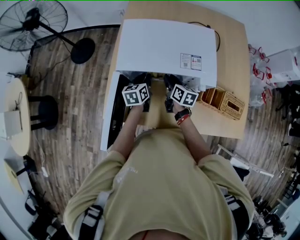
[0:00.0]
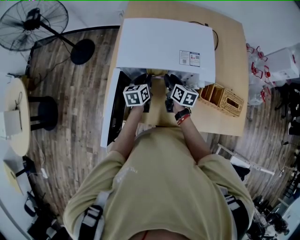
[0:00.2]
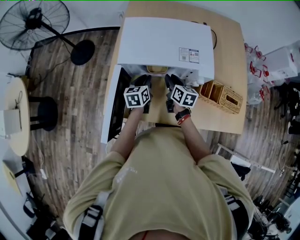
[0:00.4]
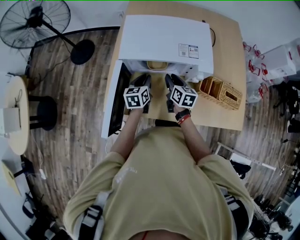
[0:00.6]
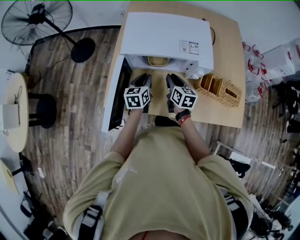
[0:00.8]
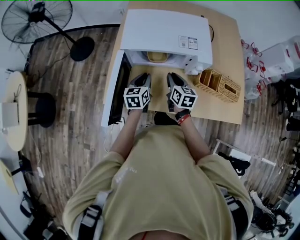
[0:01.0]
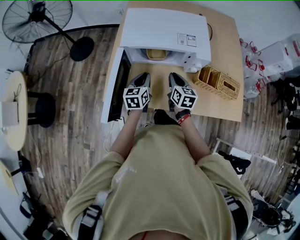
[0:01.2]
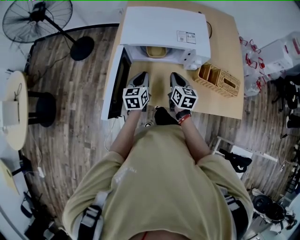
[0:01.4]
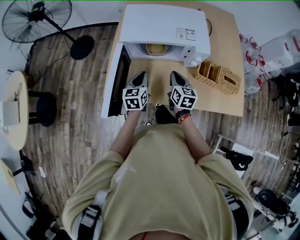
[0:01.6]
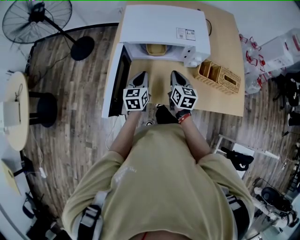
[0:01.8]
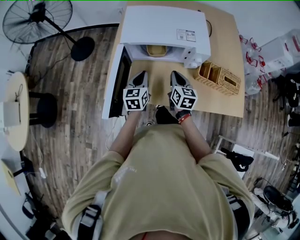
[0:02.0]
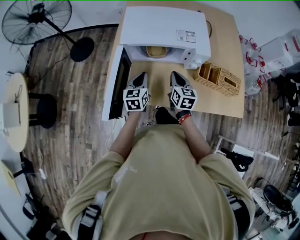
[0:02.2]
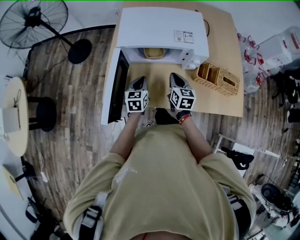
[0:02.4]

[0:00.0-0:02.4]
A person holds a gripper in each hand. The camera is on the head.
0:00.0 to 0:01.2: The right gripper shifts about 15 cm backward and upward. The left gripper shifts some 15 cm backward.
0:01.2 to 0:02.4: The grippers make only small movements.

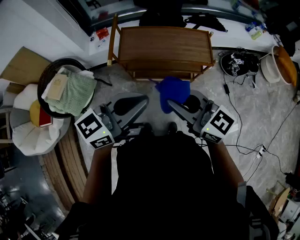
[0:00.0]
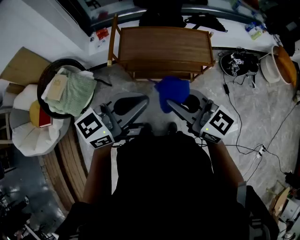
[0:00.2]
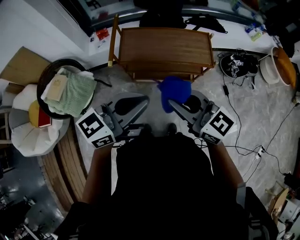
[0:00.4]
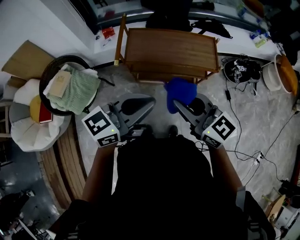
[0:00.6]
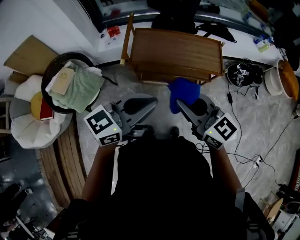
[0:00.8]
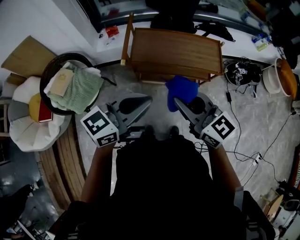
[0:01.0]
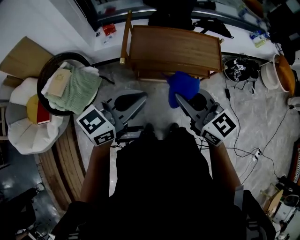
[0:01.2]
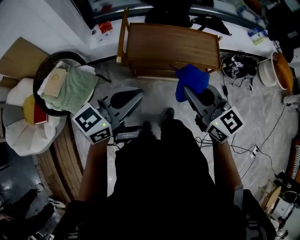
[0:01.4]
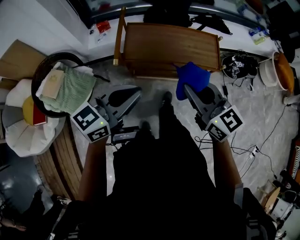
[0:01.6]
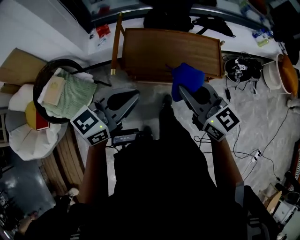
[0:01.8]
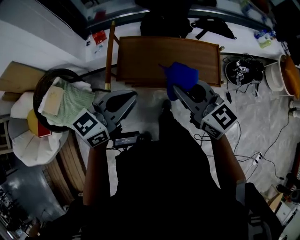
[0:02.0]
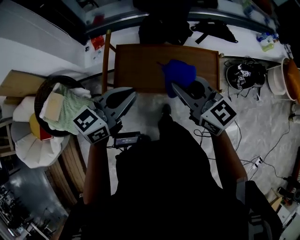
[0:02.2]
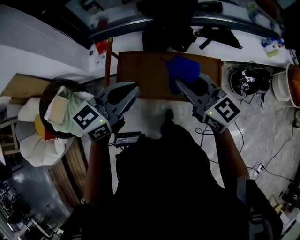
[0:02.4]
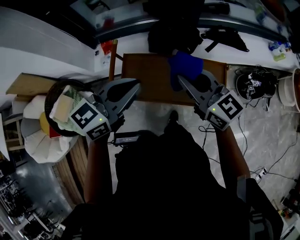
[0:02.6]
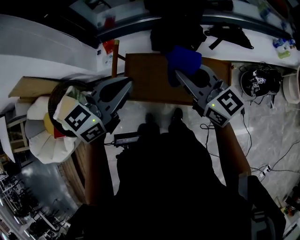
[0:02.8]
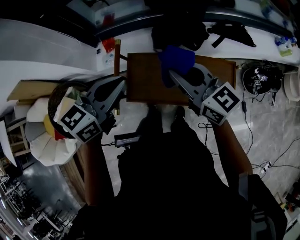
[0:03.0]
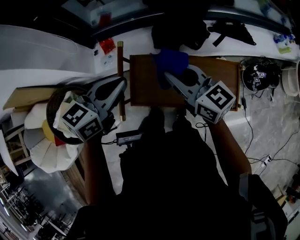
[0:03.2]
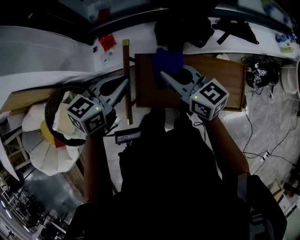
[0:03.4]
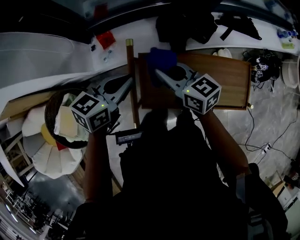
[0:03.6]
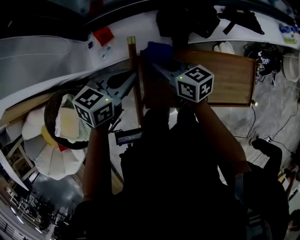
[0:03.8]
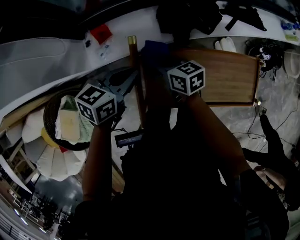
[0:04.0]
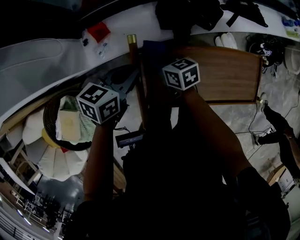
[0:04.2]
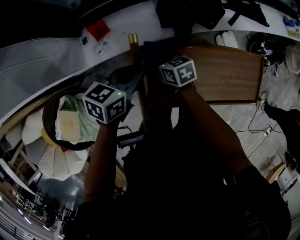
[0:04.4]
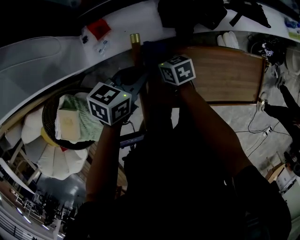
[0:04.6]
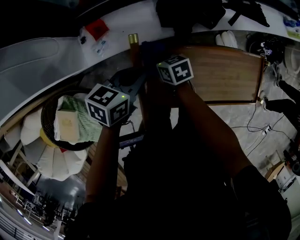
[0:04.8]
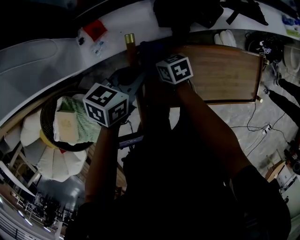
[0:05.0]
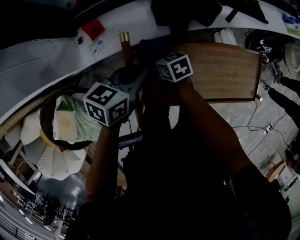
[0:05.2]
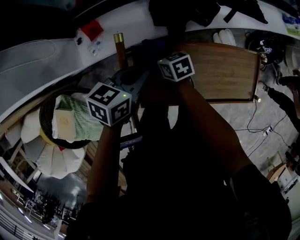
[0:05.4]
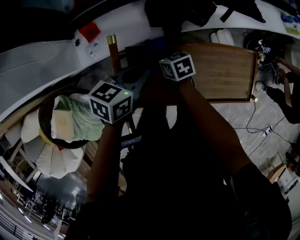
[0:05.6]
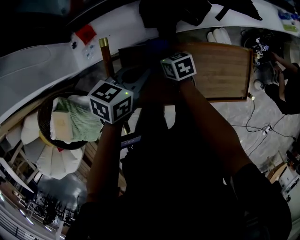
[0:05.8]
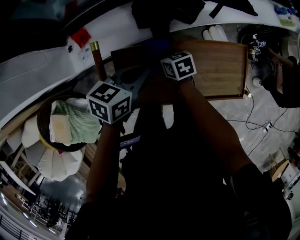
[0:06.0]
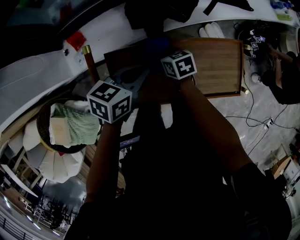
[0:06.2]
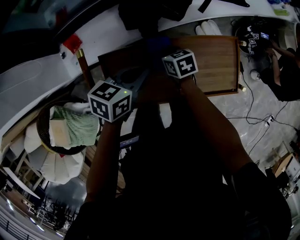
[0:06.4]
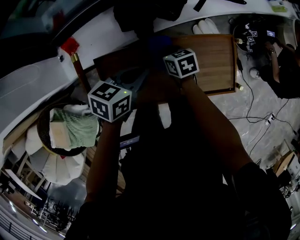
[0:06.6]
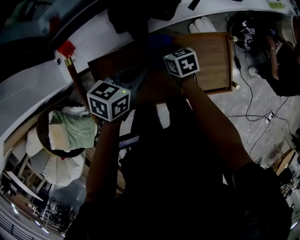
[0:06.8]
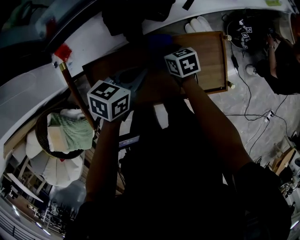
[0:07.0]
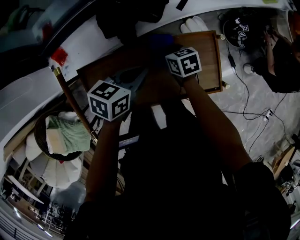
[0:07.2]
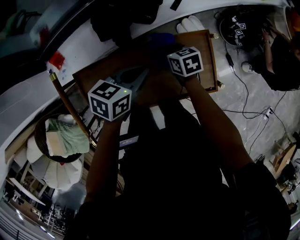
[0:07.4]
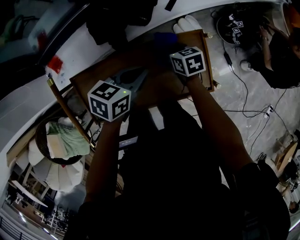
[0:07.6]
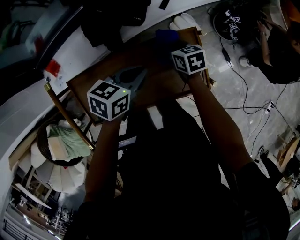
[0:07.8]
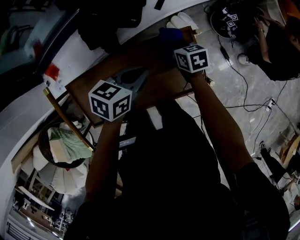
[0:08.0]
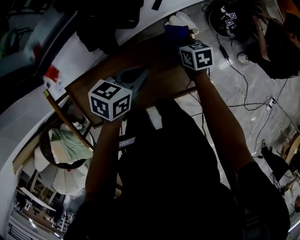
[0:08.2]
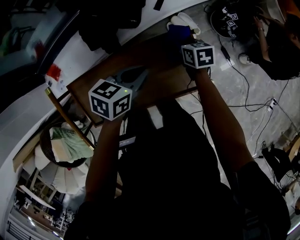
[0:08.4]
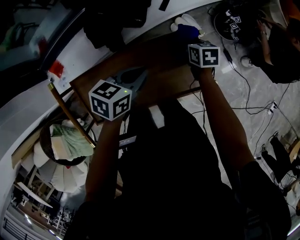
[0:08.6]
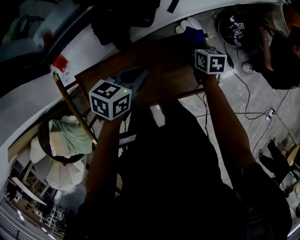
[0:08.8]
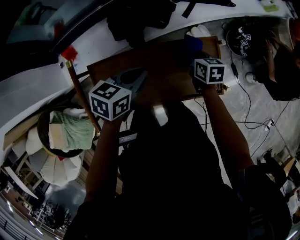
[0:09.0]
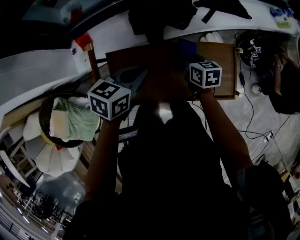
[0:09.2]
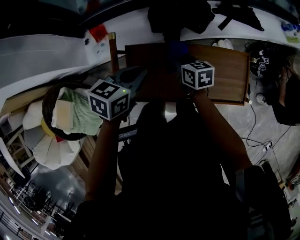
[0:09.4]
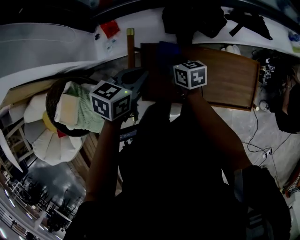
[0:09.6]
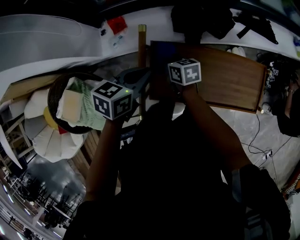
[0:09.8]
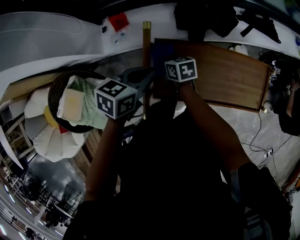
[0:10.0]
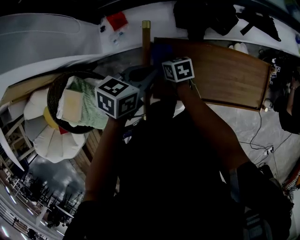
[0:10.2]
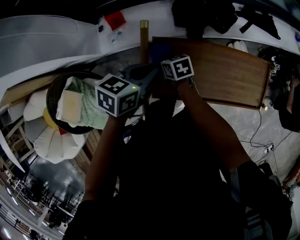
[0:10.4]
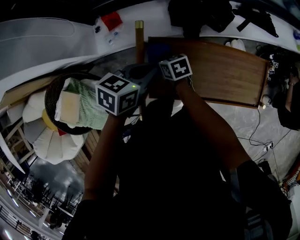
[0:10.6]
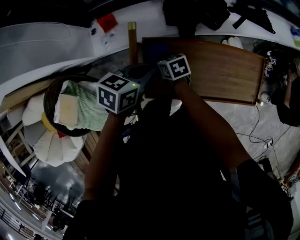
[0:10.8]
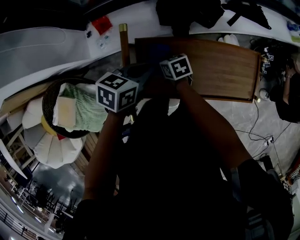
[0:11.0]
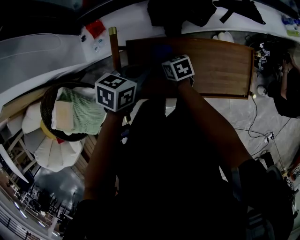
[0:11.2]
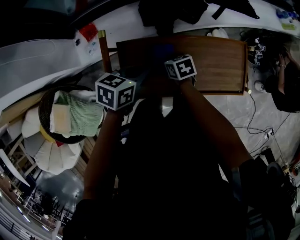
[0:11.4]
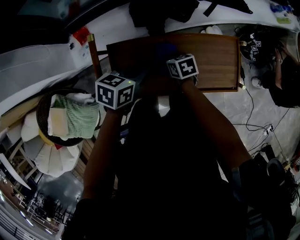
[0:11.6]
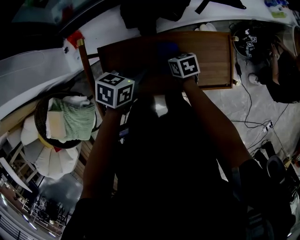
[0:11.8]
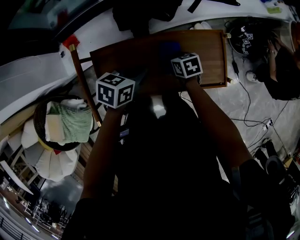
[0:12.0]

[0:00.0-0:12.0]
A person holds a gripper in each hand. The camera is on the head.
0:00.0 to 0:01.6: The right gripper goes some 10 cm forward, while the left gripper goes approximately 10 cm to the left and forward.
0:01.6 to 0:03.0: Both grippers move forward, roughly 35 cm.
0:03.0 to 0:04.4: The left gripper goes about 30 cm downward, forward and to the left, and changes its angle by about 30 degrees; the right gripper heads downward and to the left, covering approximately 40 cm, and tilts its fingers approximately 40 degrees downward.
0:04.4 to 0:06.0: Both grippers travel together to the right, roughly 15 cm.
0:06.0 to 0:07.6: Both grippers travel together to the right, roughly 25 cm.
0:07.6 to 0:09.0: The right gripper goes to the right and returns, roughly 10 cm each way; the left gripper travels to the left by approximately 5 cm.
0:09.0 to 0:10.4: The right gripper shifts approximately 40 cm to the left, and turns by about 30 degrees; the left gripper shifts about 25 cm to the left.
0:10.4 to 0:12.0: Both grippers move to the right, approximately 30 cm.

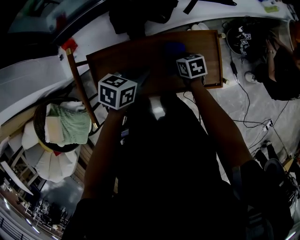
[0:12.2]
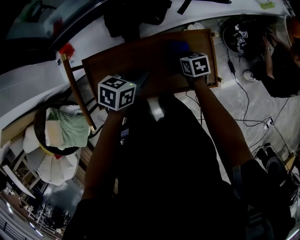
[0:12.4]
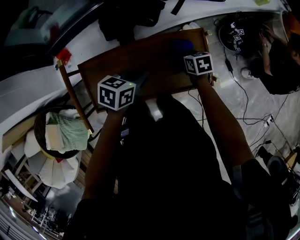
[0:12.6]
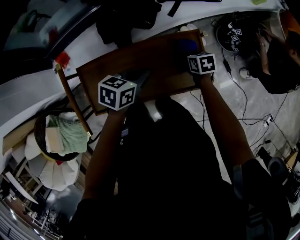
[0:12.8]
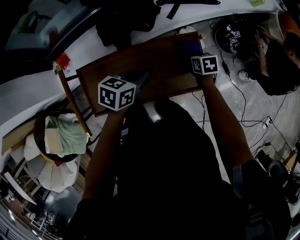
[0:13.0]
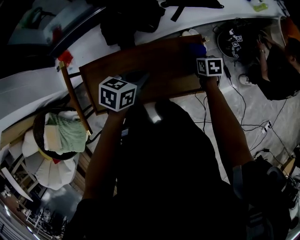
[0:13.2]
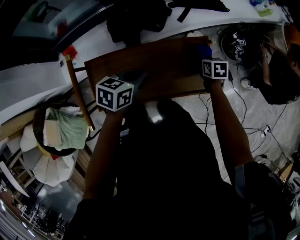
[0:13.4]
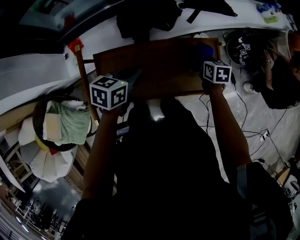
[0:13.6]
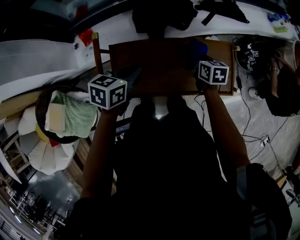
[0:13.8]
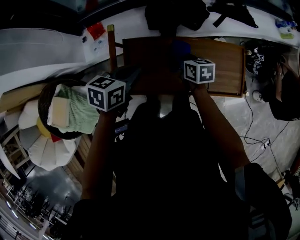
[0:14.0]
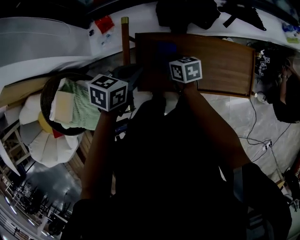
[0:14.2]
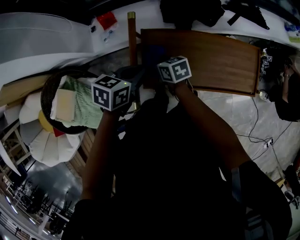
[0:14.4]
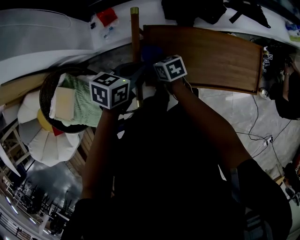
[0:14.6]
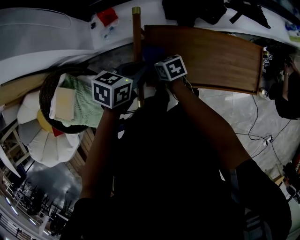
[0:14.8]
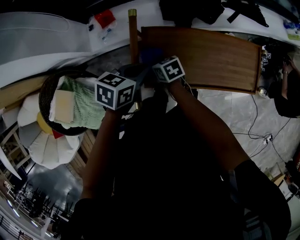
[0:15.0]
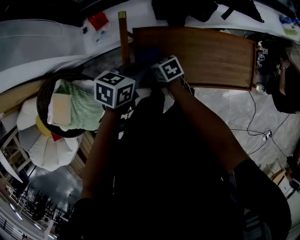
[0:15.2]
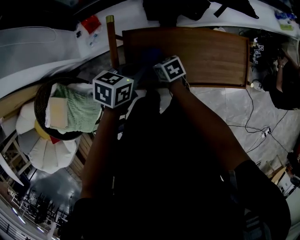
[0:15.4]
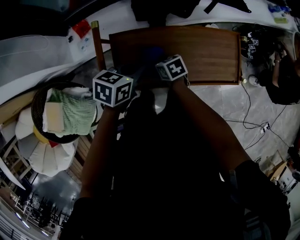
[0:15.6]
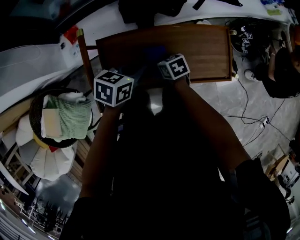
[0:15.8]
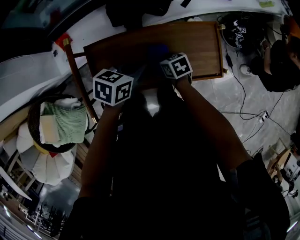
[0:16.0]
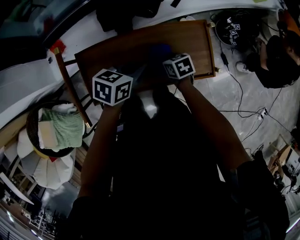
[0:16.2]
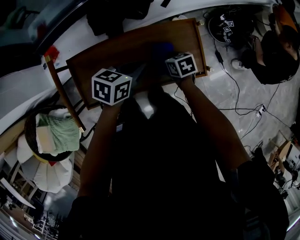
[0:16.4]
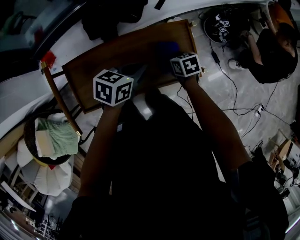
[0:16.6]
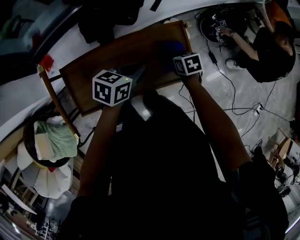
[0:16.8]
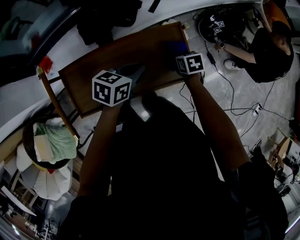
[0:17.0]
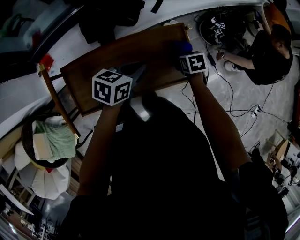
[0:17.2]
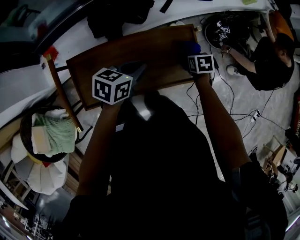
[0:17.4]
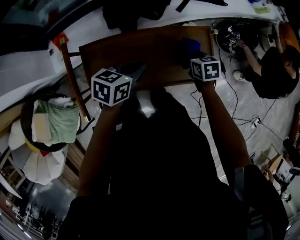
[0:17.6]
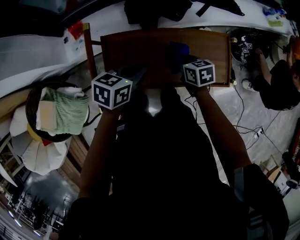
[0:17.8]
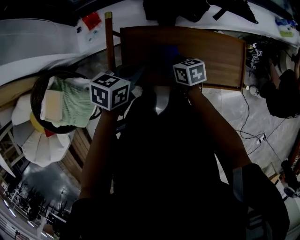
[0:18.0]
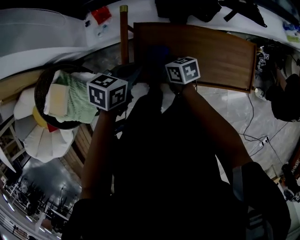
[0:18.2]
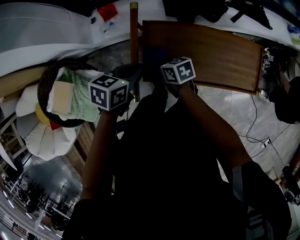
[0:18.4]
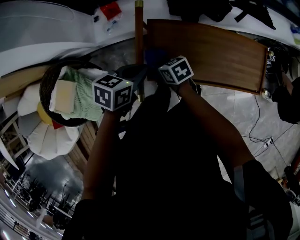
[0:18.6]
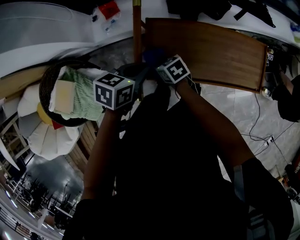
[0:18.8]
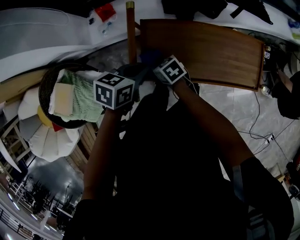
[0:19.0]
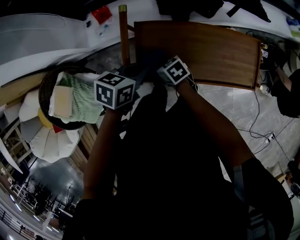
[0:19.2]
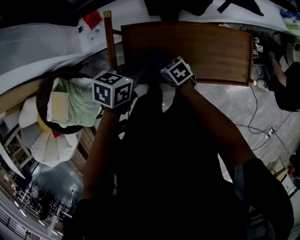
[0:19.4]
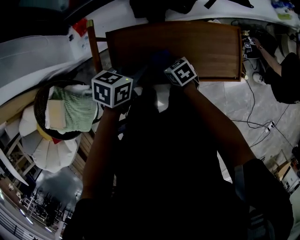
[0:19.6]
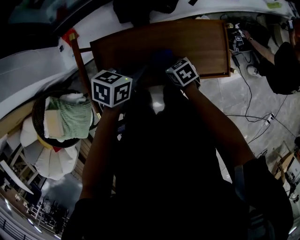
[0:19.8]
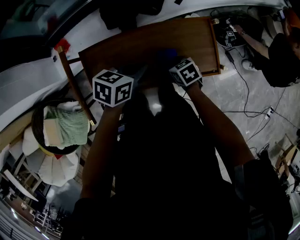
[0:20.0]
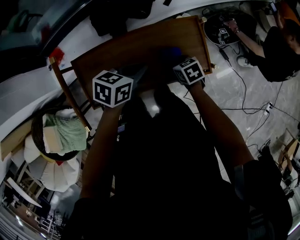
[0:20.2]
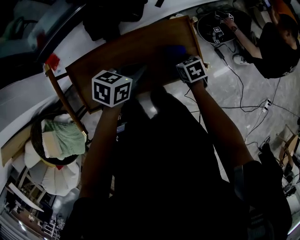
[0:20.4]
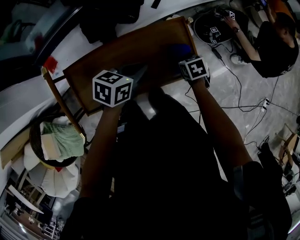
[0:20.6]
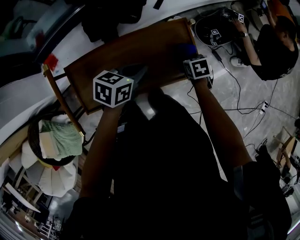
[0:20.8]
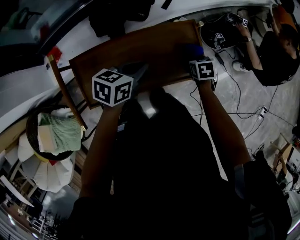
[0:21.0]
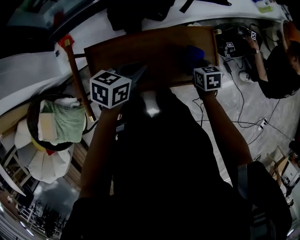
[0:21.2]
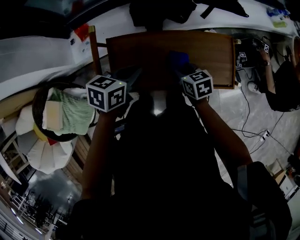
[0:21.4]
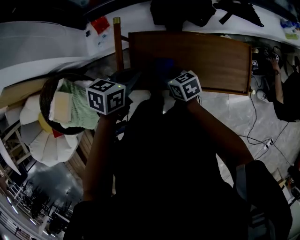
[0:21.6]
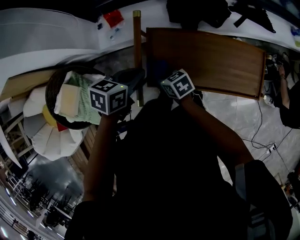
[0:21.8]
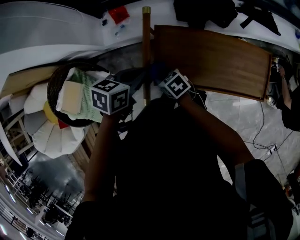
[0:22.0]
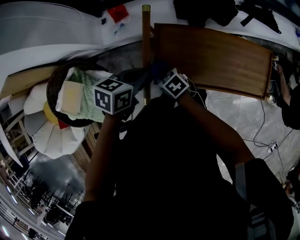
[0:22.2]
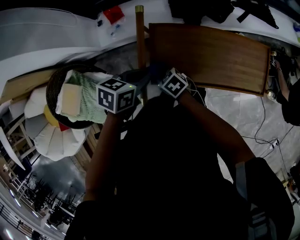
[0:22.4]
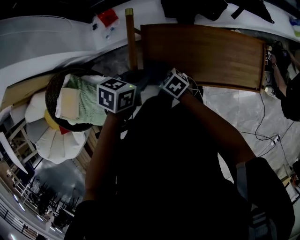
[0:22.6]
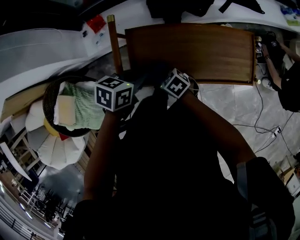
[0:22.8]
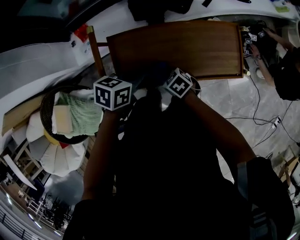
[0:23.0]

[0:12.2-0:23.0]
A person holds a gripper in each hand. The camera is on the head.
0:12.2 to 0:13.8: The right gripper shifts roughly 10 cm upward, and goes to the right and returns, some 15 cm each way. Meanwhile the left gripper travels to the left by about 10 cm.
0:13.8 to 0:15.2: The left gripper moves to the left, about 10 cm, while the right gripper travels to the left by approximately 35 cm, and swivels about 30 degrees.
0:15.2 to 0:16.8: The left gripper changes place by approximately 35 cm. Meanwhile the right gripper changes place by roughly 50 cm, and changes its angle by roughly 30 degrees.
0:16.8 to 0:18.4: The right gripper changes place by about 50 cm, and turns by approximately 30 degrees. Meanwhile the left gripper shifts by approximately 40 cm, and swivels approximately 20 degrees.
0:18.4 to 0:20.0: The left gripper ends up about 30 cm from where it was. The right gripper ends up roughly 35 cm from where it was, and turns by about 20 degrees.
0:20.0 to 0:21.4: The left gripper moves about 15 cm.
0:21.4 to 0:23.0: The right gripper turns by some 30 degrees.
